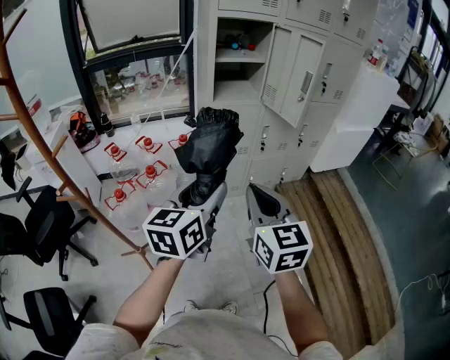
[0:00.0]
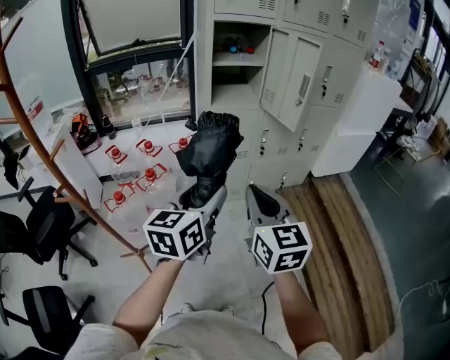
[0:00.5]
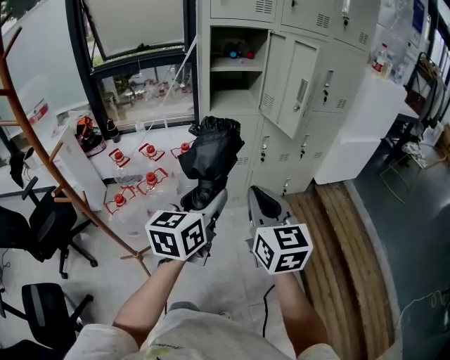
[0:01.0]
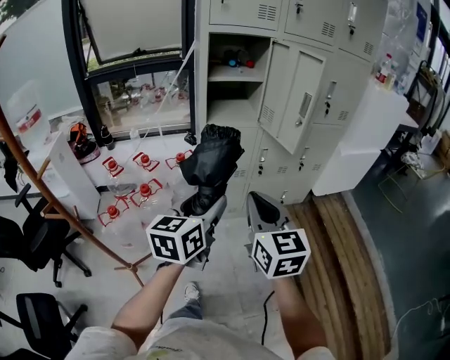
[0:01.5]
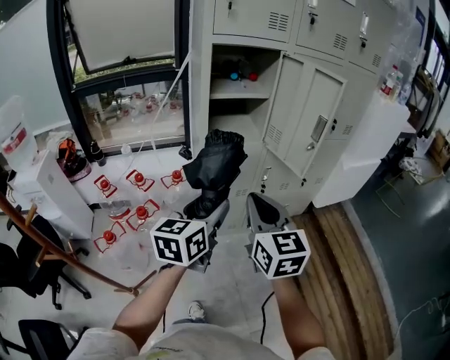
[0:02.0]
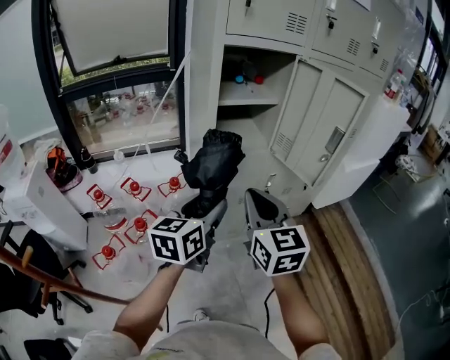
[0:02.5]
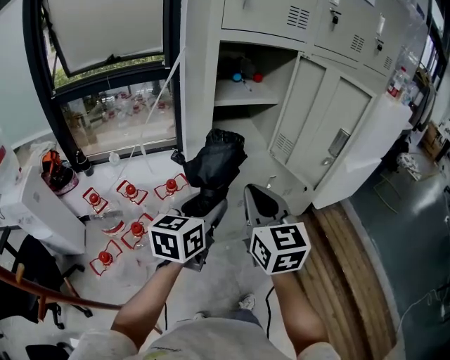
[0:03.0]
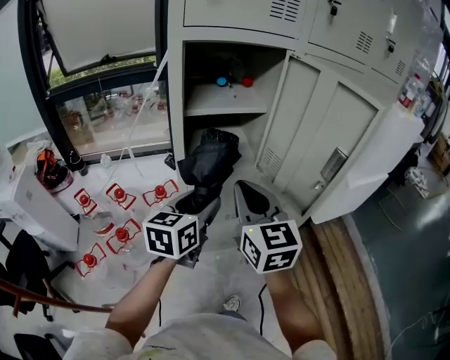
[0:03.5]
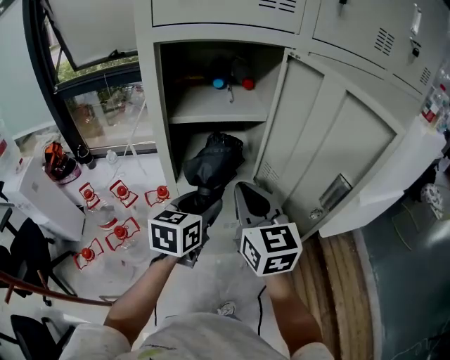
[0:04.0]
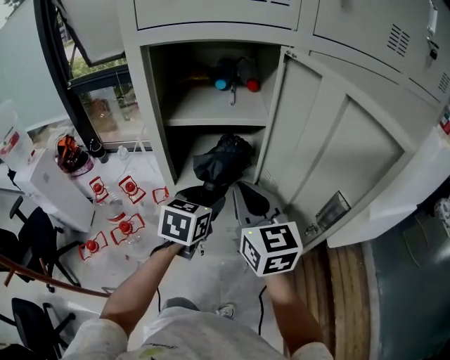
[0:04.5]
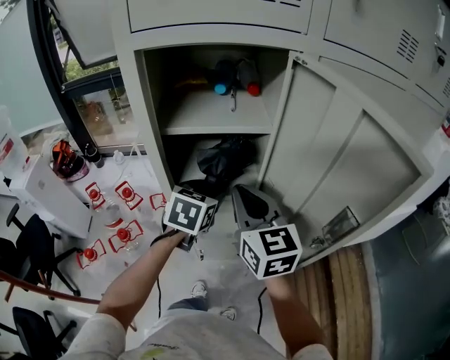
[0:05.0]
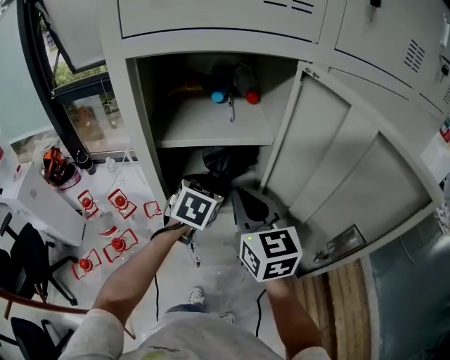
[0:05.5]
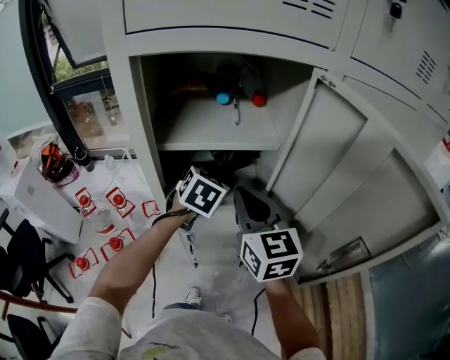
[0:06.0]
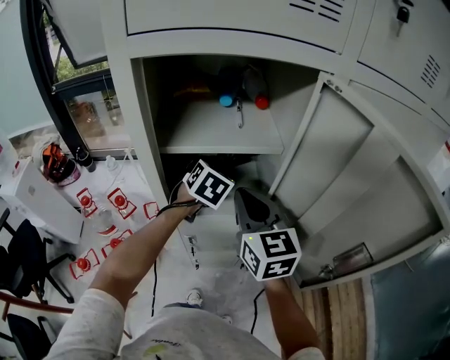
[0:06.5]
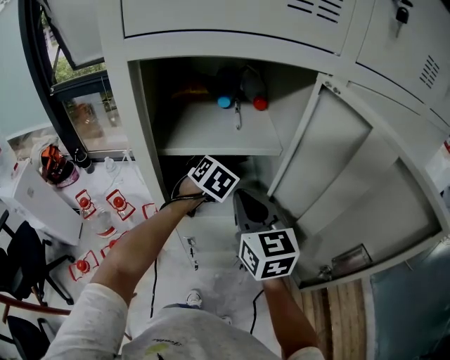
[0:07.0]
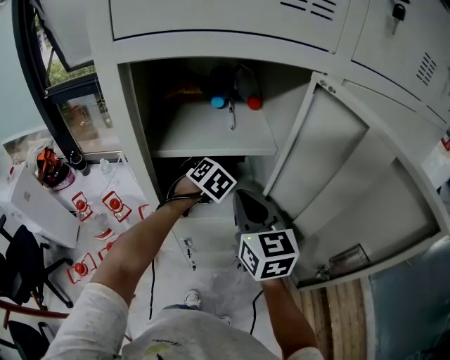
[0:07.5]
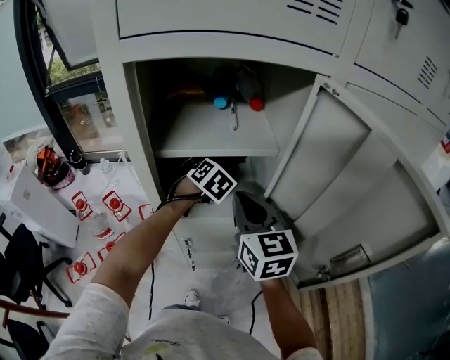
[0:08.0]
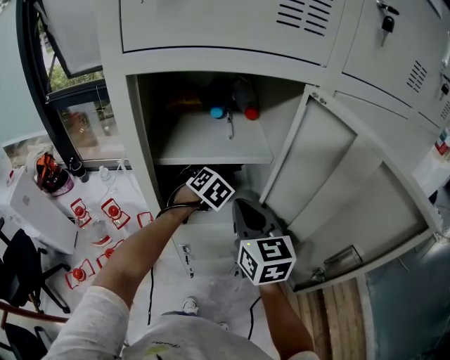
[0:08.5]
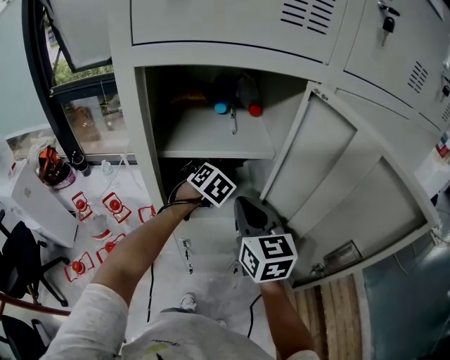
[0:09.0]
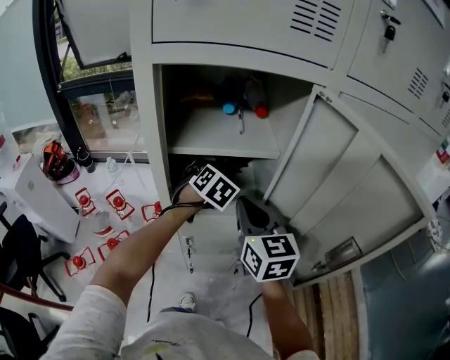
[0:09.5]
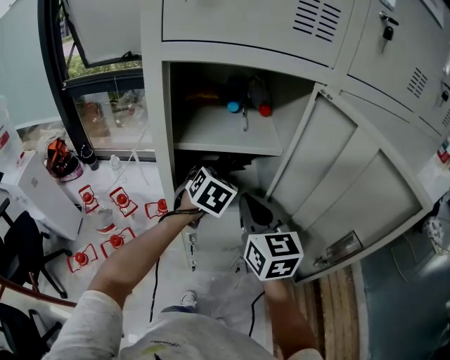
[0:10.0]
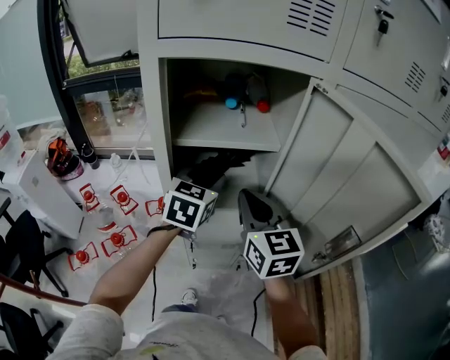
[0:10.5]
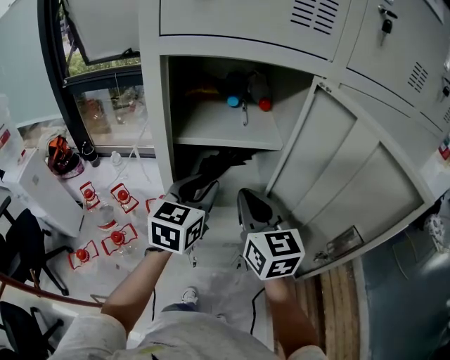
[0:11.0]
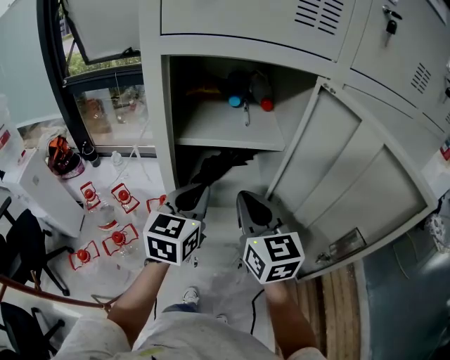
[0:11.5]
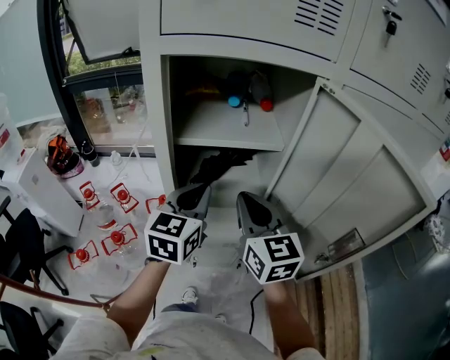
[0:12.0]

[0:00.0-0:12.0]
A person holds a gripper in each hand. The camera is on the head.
0:00.0 to 0:02.0: The grippers both shift forward by roughly 20 cm.
0:02.0 to 0:04.0: The two grippers go roughly 30 cm forward.
0:04.0 to 0:06.0: The left gripper goes about 20 cm forward, and turns by some 30 degrees; the right gripper travels forward by roughly 10 cm.
0:06.0 to 0:08.0: The left gripper goes about 5 cm forward.
0:08.0 to 0:10.0: The left gripper heads backward and upward, covering approximately 10 cm.
0:10.0 to 0:12.0: The left gripper travels backward and to the left by some 10 cm, rotates some 30 degrees, and closes up.

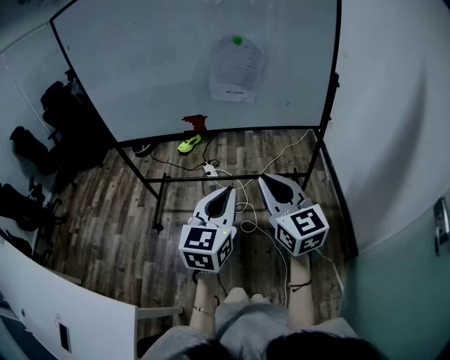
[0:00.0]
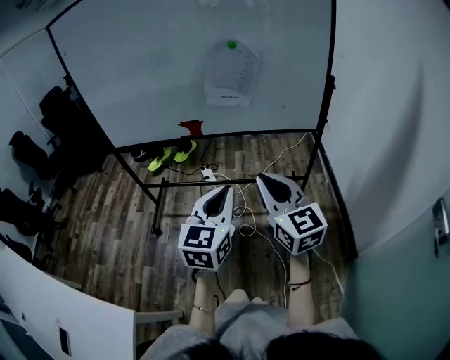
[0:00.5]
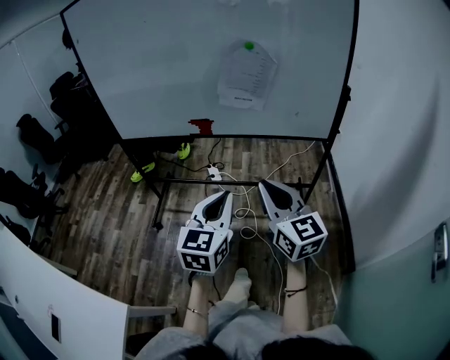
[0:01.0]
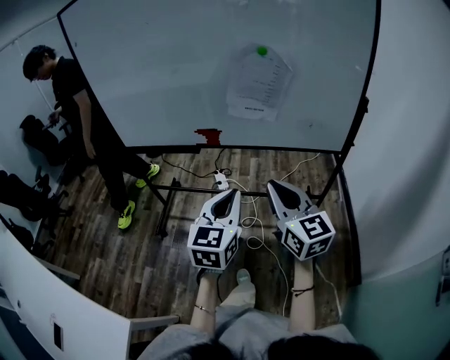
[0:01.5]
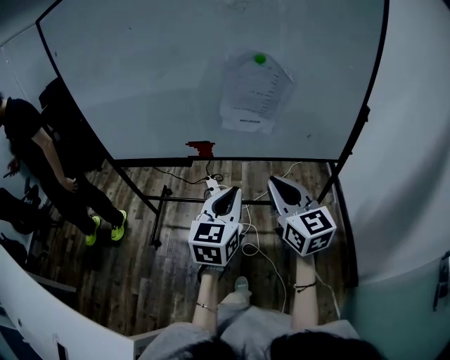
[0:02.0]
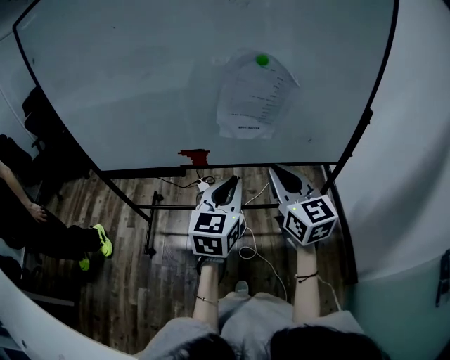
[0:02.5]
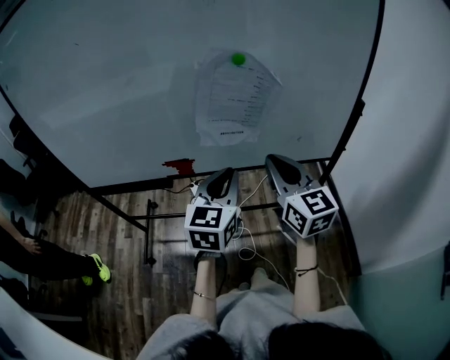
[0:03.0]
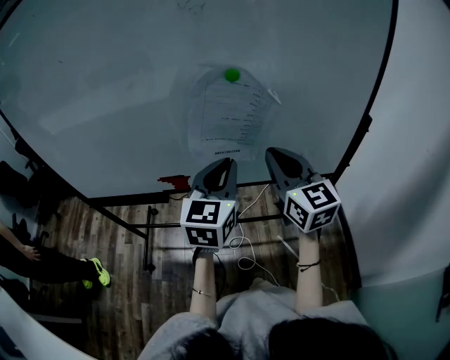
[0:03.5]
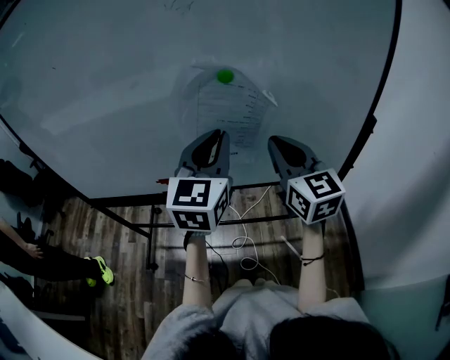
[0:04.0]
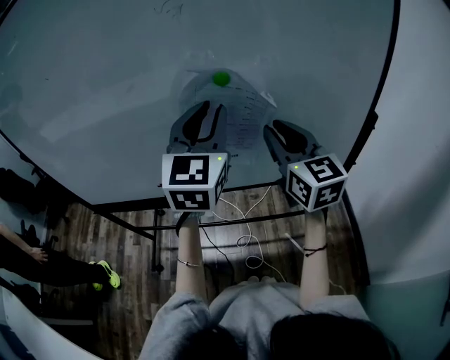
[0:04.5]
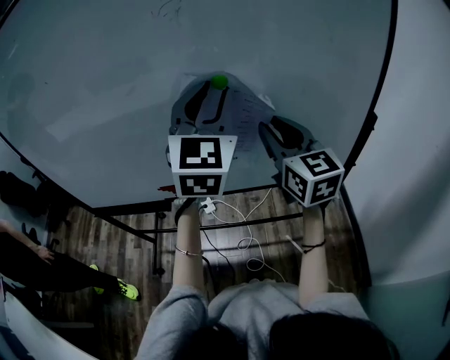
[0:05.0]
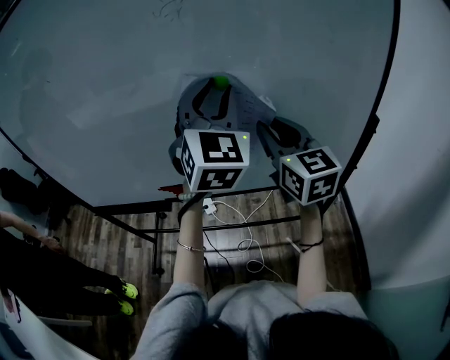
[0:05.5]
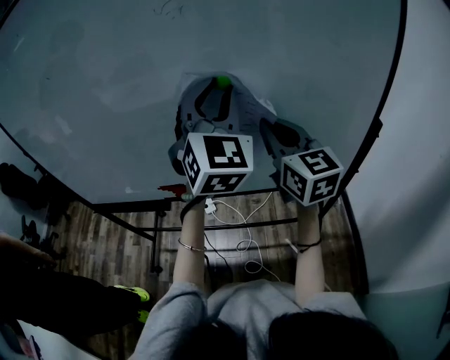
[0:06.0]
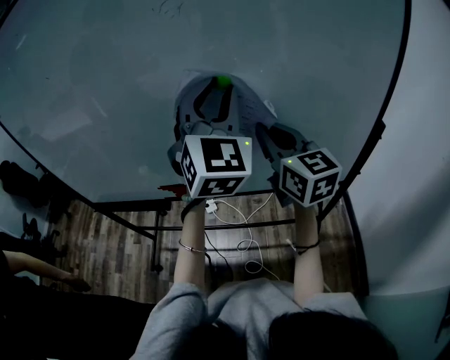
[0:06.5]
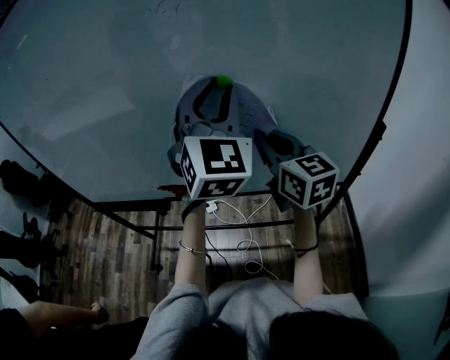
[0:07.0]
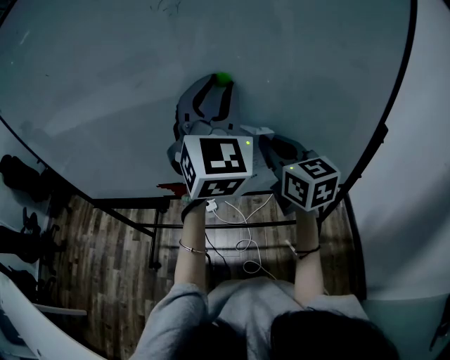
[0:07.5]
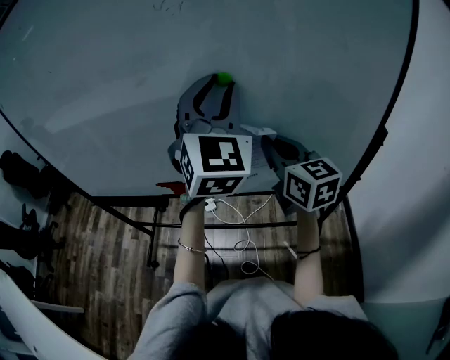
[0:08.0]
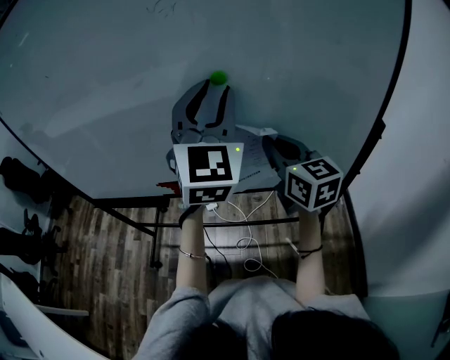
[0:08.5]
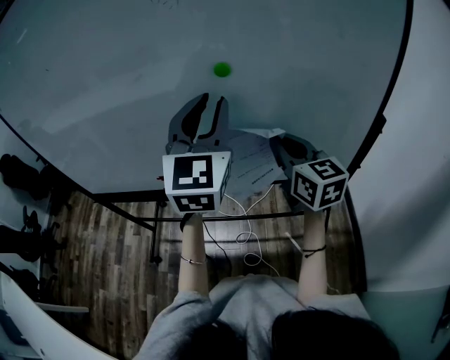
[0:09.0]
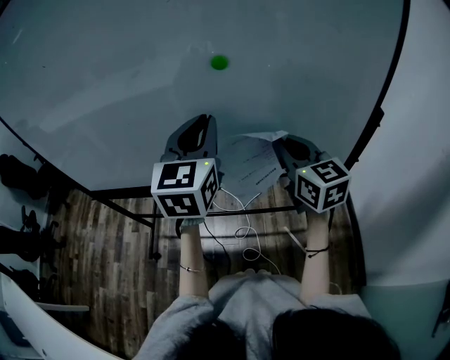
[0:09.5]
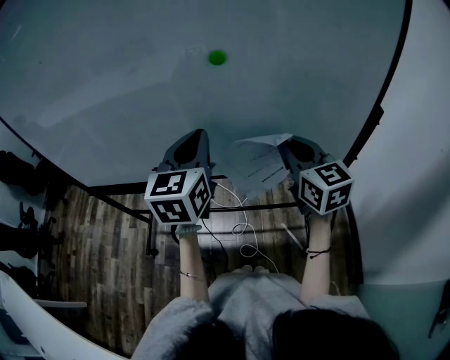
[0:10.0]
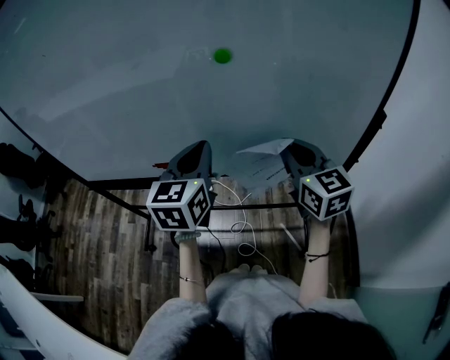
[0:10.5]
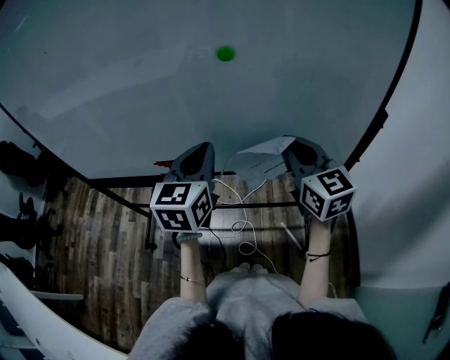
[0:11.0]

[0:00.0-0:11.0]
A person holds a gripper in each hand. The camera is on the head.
0:00.0 to 0:02.0: The two grippers go roughly 20 cm forward.
0:02.0 to 0:03.5: Both grippers travel together forward, approximately 20 cm.
0:03.5 to 0:05.5: The right gripper travels forward by approximately 5 cm, while the left gripper goes approximately 20 cm upward and forward, turns by approximately 40 degrees, and opens.
0:05.5 to 0:07.5: The right gripper shifts approximately 5 cm downward.
0:07.5 to 0:09.0: The left gripper shifts by roughly 5 cm.
0:09.0 to 0:11.0: The left gripper heads downward, covering some 15 cm, swivels approximately 30 degrees, and closes up.

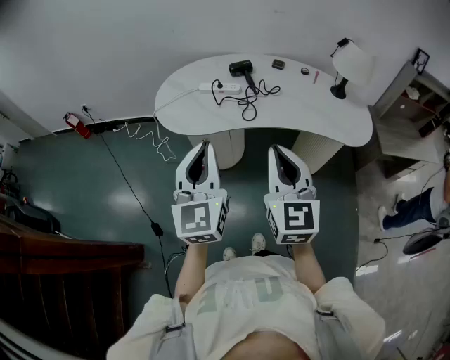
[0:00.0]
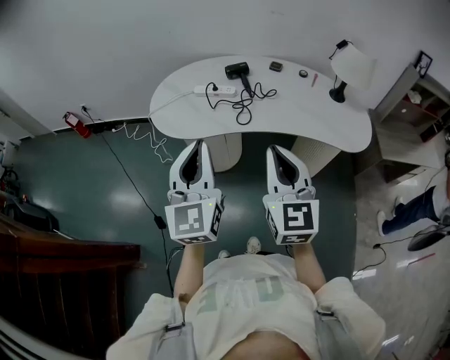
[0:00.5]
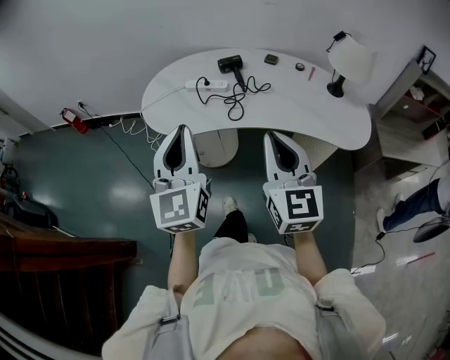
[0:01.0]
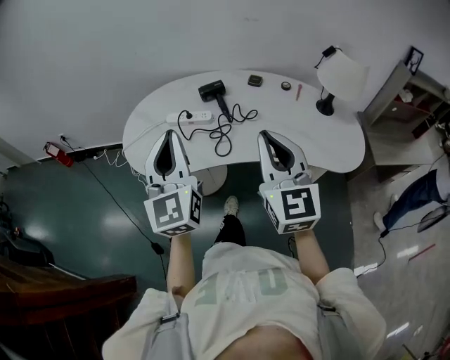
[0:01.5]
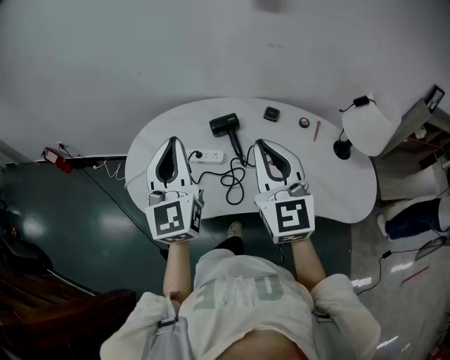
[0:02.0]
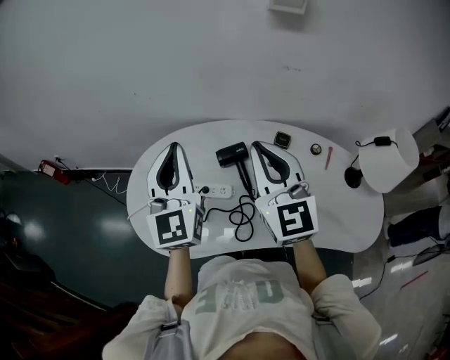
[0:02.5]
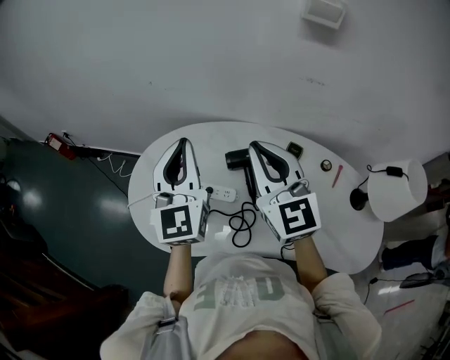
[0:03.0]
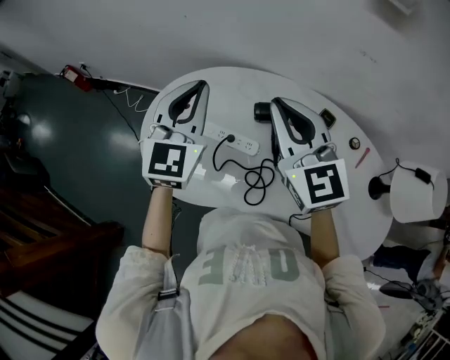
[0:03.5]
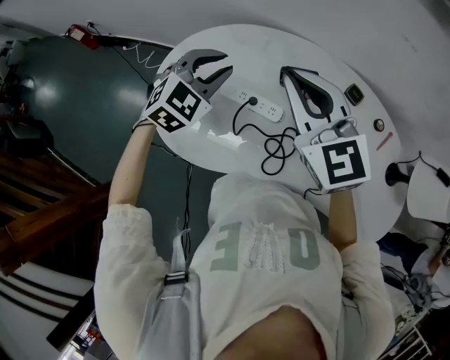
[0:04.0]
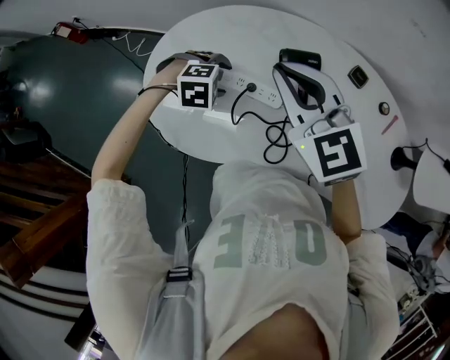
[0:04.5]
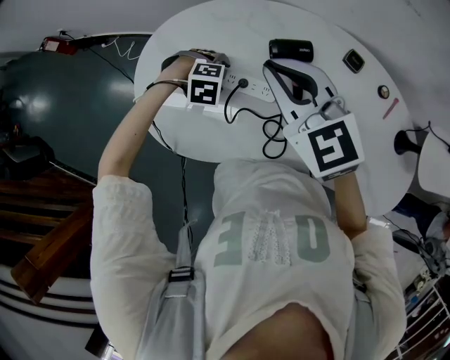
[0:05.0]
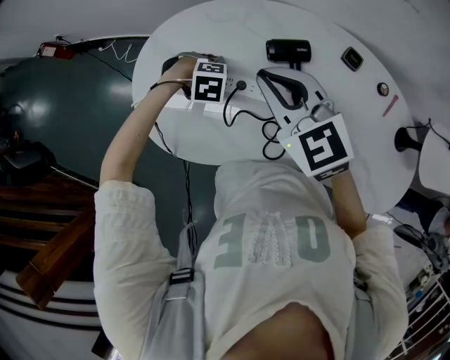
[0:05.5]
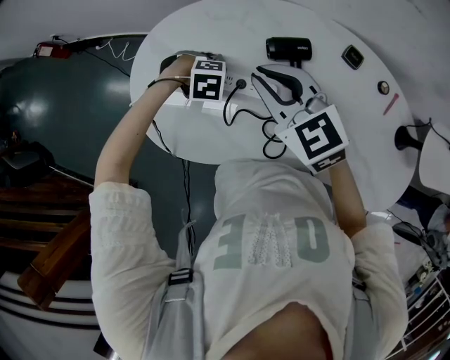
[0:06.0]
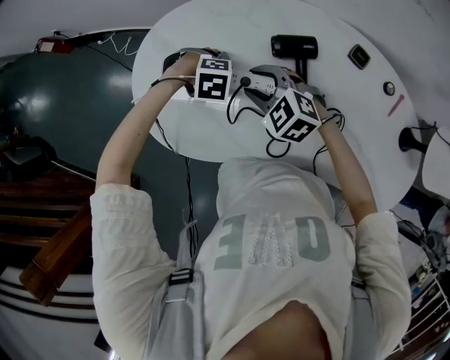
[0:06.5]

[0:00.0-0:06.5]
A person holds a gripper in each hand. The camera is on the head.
0:00.0 to 0:02.0: Both grippers travel together forward, about 35 cm.
0:02.0 to 0:04.5: The left gripper heads downward and forward, covering some 35 cm, tilts its fingers some 80 degrees downward, and opens up, while the right gripper travels forward, to the left and downward by roughly 25 cm, and rotates about 40 degrees.
0:04.5 to 0:06.5: The left gripper goes some 5 cm downward, while the right gripper moves downward, roughly 20 cm, changes its angle by some 30 degrees, and opens.
